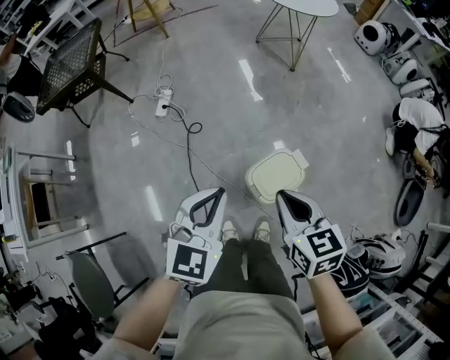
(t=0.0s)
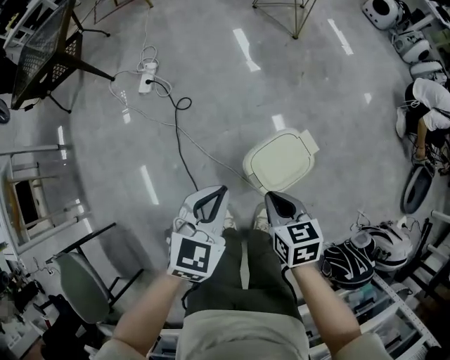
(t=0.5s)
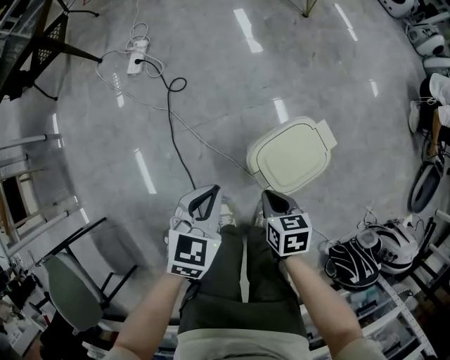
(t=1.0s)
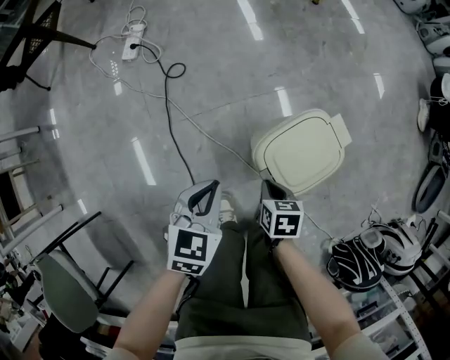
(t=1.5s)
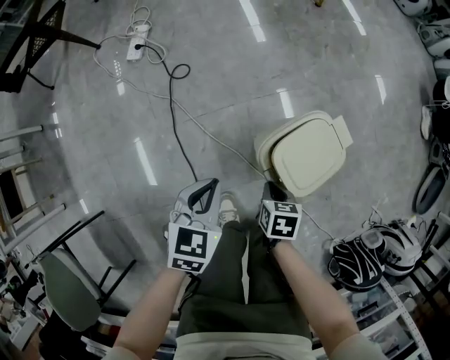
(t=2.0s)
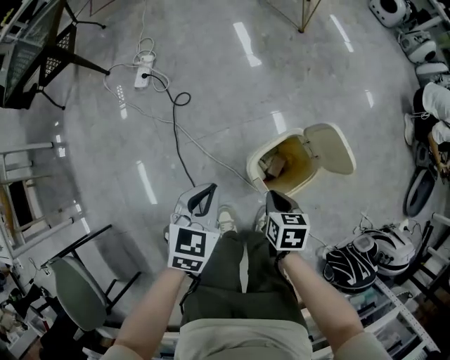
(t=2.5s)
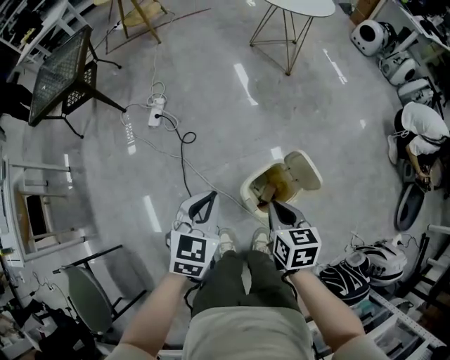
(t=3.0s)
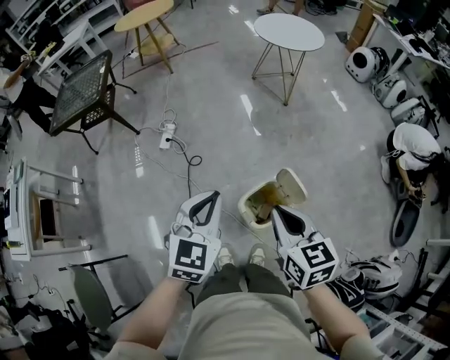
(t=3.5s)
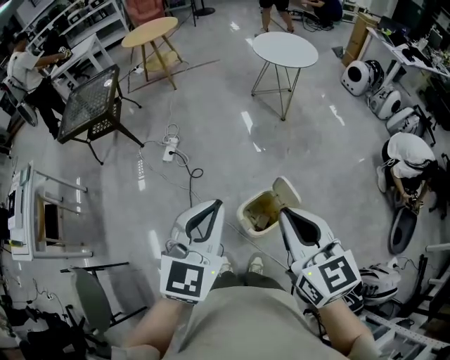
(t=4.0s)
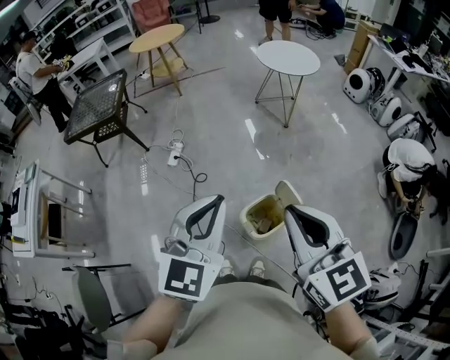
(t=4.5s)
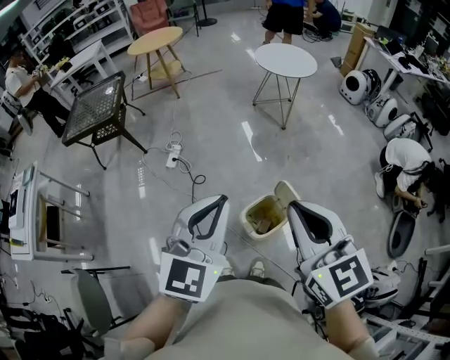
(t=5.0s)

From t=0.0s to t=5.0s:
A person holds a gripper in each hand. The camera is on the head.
From t=0.0s to t=2.5s: The grippers both shift downward by roughly 35 cm. The right gripper changes its angle by about 30 degrees.
From t=2.5s to t=5.0s: The two grippers go about 60 cm upward. The left gripper points its fingers some 30 degrees further upward; the right gripper tips its fingers upward by approximately 50 degrees.

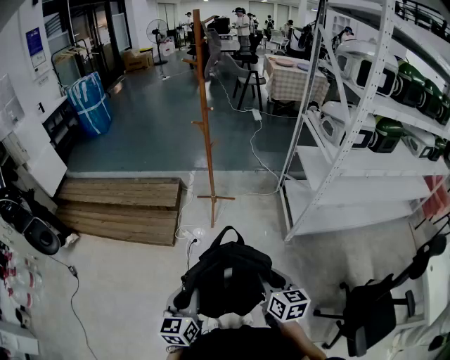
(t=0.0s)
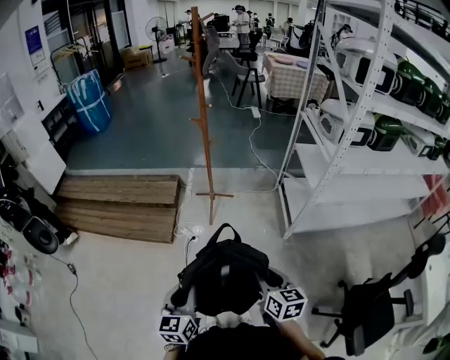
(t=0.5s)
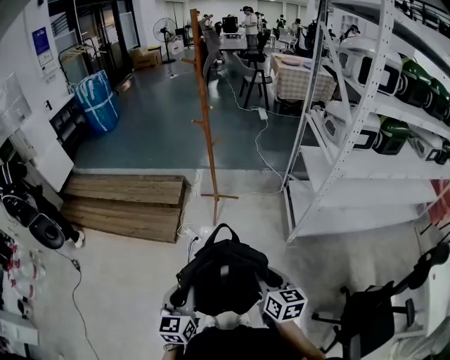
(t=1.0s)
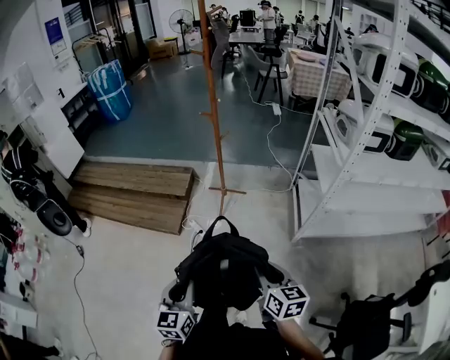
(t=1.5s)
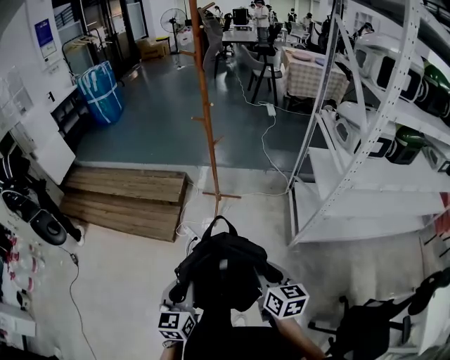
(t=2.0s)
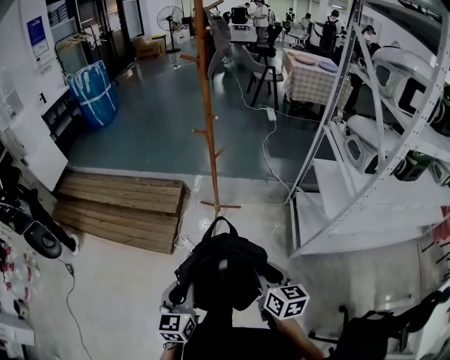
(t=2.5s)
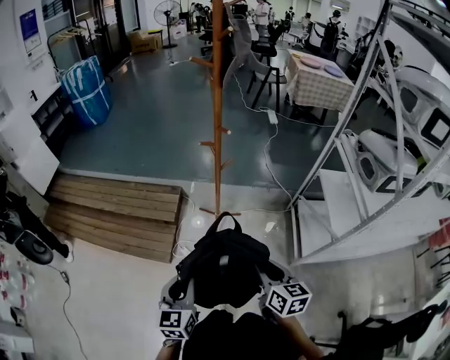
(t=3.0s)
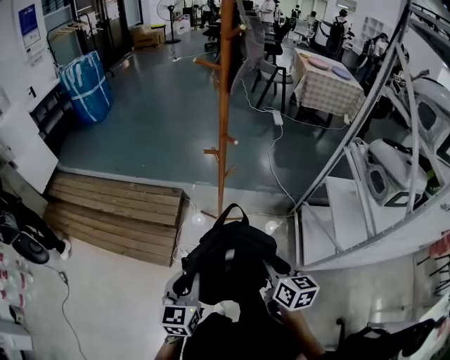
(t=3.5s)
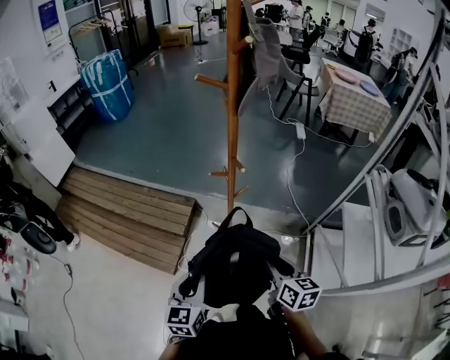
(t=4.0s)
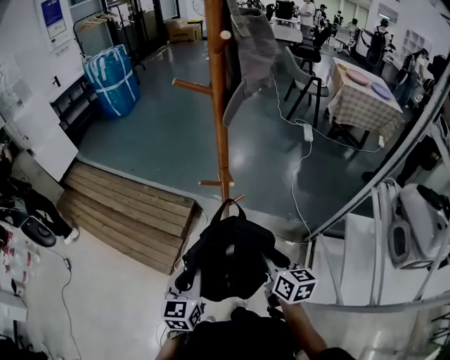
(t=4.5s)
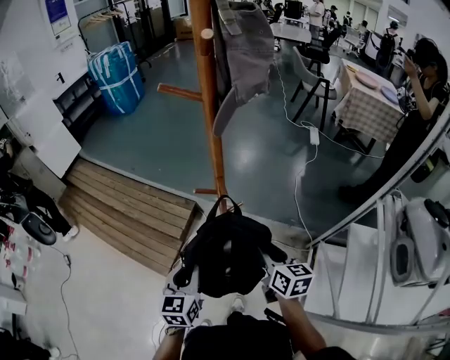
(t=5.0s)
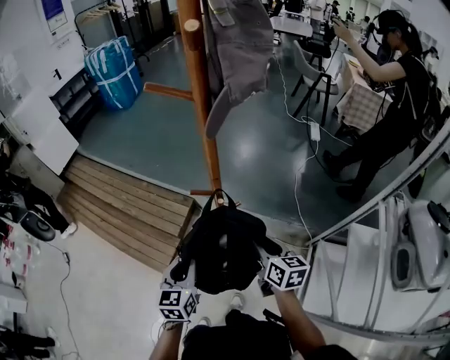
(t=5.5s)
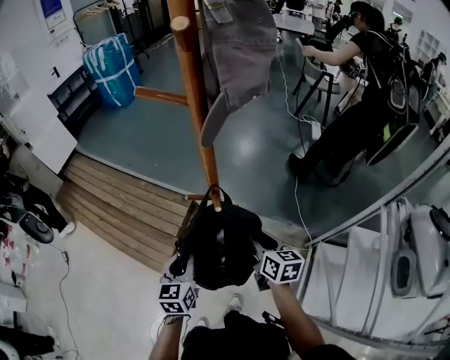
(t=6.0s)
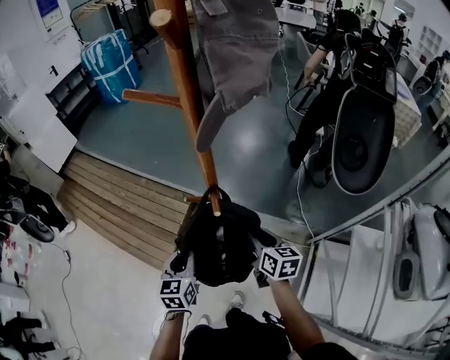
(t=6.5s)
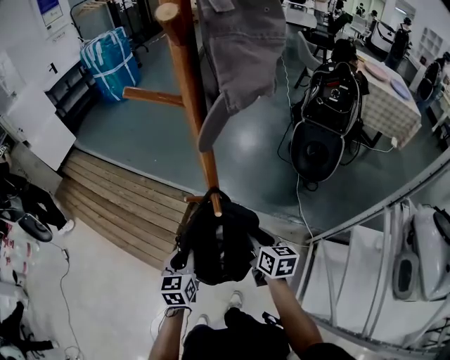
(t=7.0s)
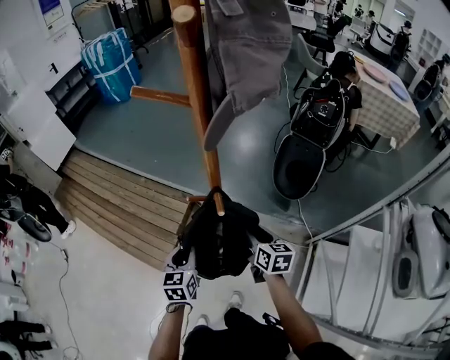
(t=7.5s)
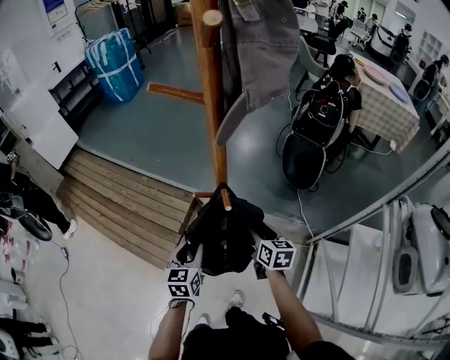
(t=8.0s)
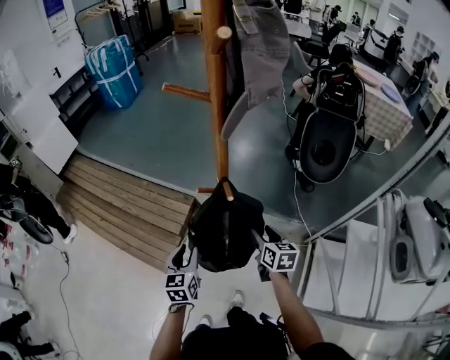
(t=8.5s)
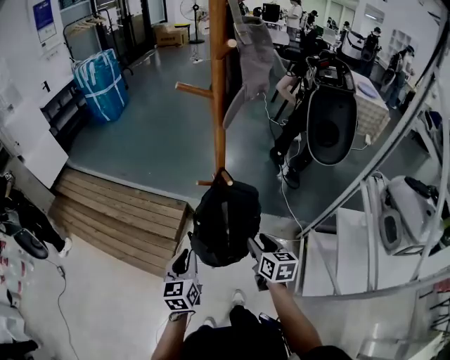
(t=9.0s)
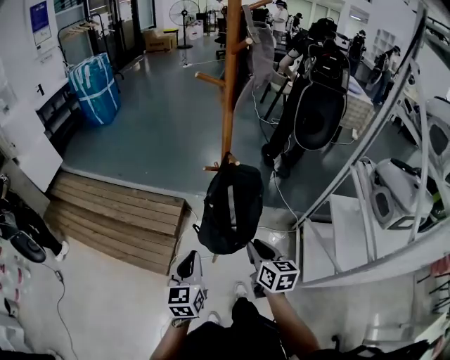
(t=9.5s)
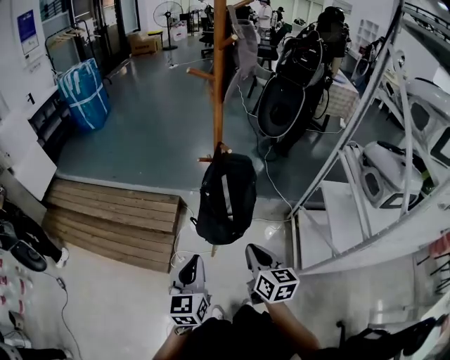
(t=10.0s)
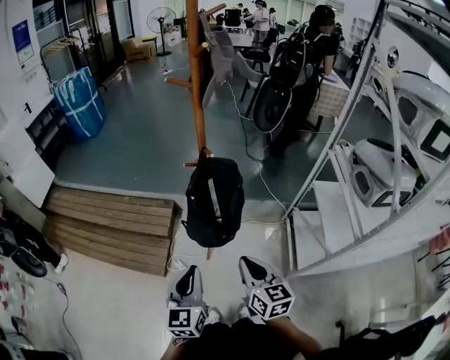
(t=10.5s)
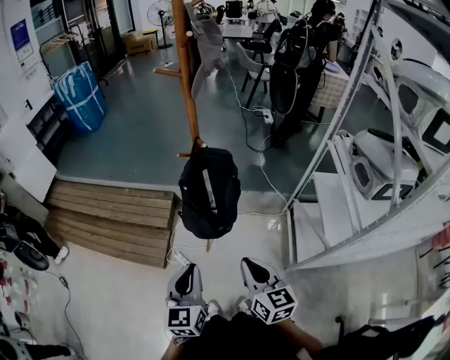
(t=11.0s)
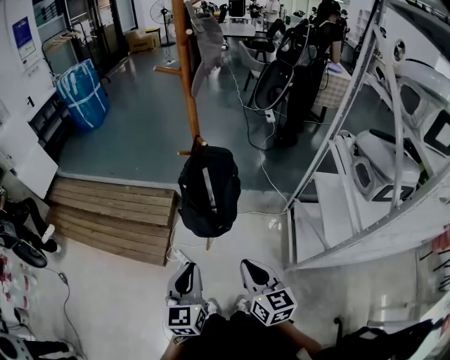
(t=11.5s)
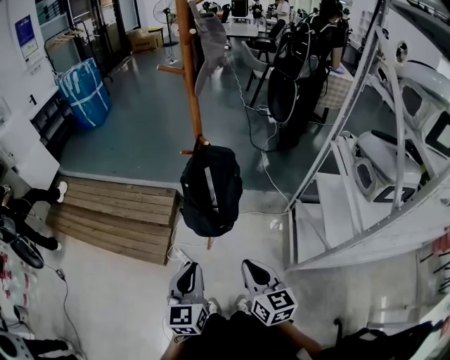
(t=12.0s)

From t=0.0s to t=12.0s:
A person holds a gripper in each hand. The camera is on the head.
From t=0.0s to t=2.0s: Both grippers travel together forward and to the right, approximately 10 cm.
From t=2.0s to t=4.0s: Both grippers are carried forward, approximately 50 cm.
From t=4.0s to t=6.0s: The right gripper shifts roughly 25 cm forward. The left gripper shifts about 20 cm forward and to the right.
From t=6.0s to t=8.0s: The right gripper moves downward, about 5 cm.
From t=8.0s to t=10.0s: Both grippers move backward and upward, approximately 35 cm. The left gripper closes its fingers. Meanwhile the right gripper closes.
From t=10.0s to t=12.0s: The left gripper moves to the right and backward, approximately 10 cm. Meanwhile the right gripper goes some 10 cm backward and to the right.

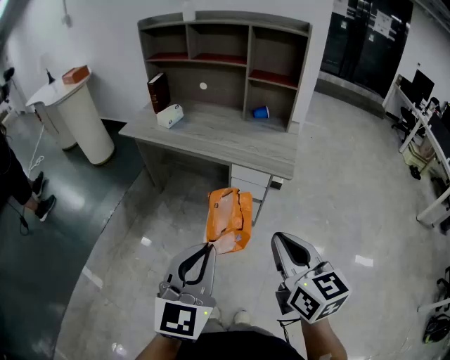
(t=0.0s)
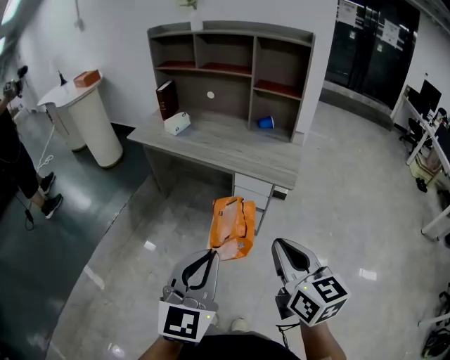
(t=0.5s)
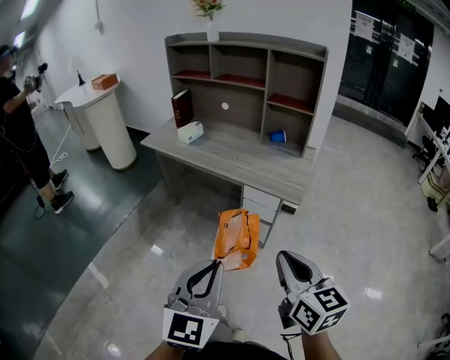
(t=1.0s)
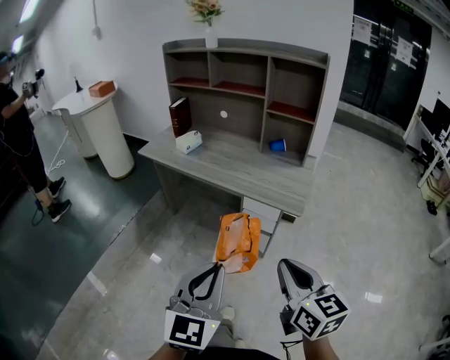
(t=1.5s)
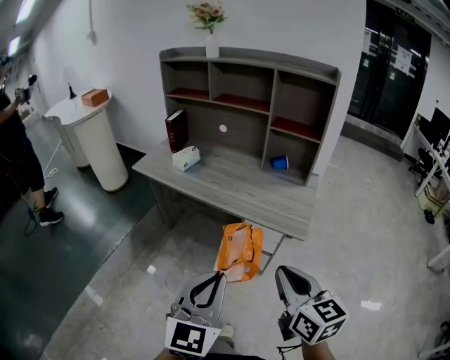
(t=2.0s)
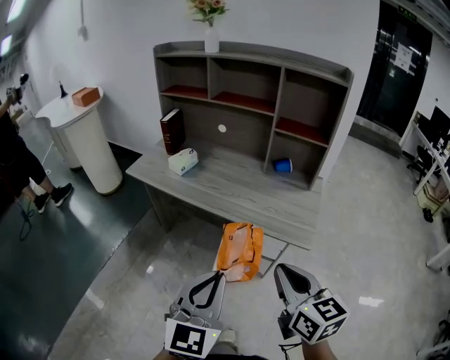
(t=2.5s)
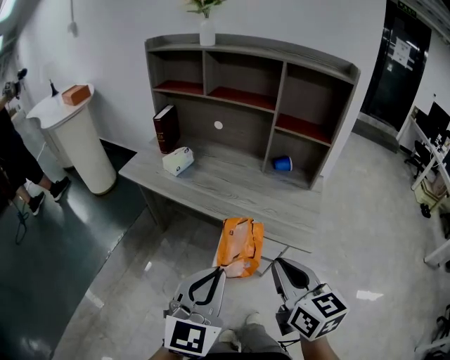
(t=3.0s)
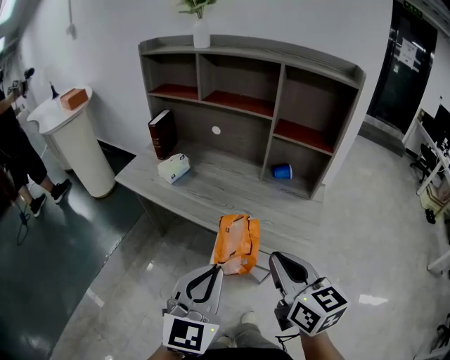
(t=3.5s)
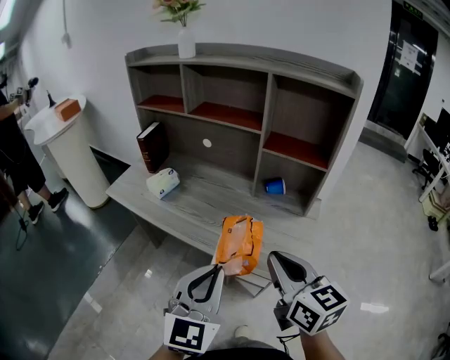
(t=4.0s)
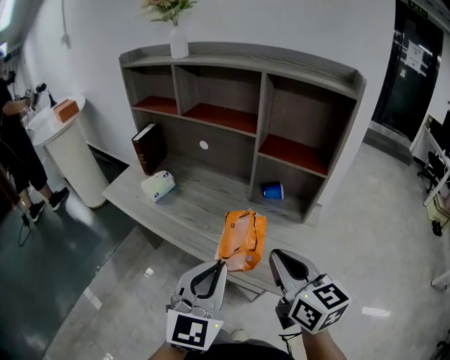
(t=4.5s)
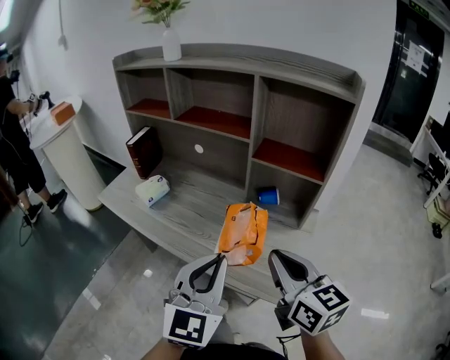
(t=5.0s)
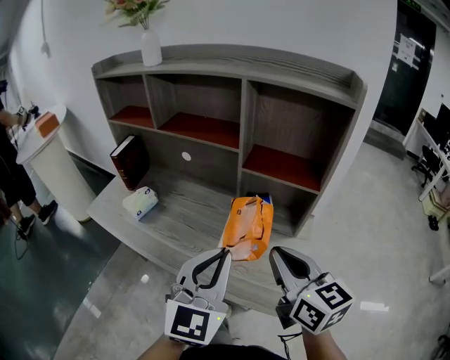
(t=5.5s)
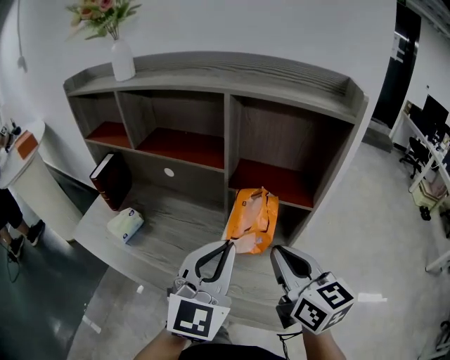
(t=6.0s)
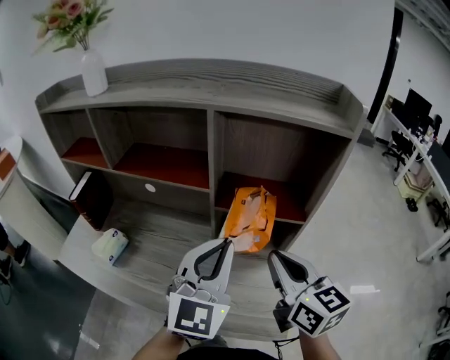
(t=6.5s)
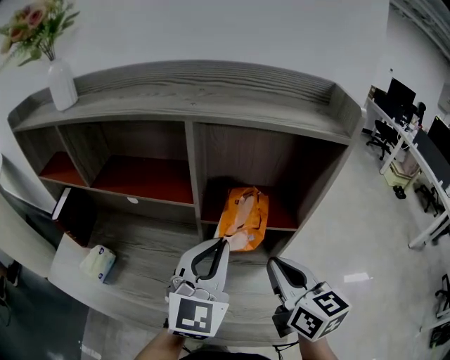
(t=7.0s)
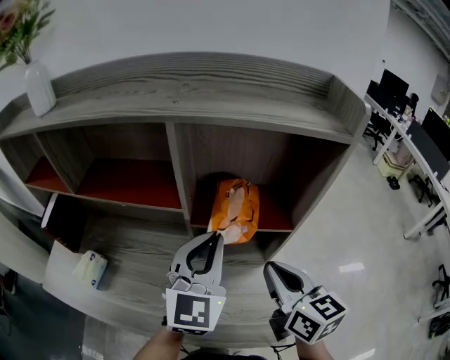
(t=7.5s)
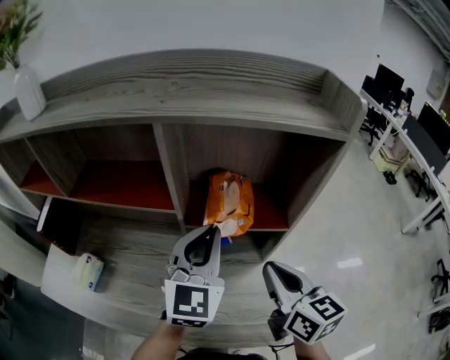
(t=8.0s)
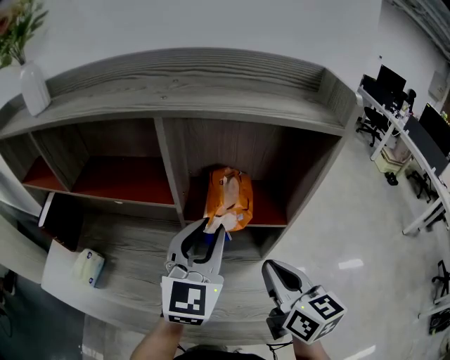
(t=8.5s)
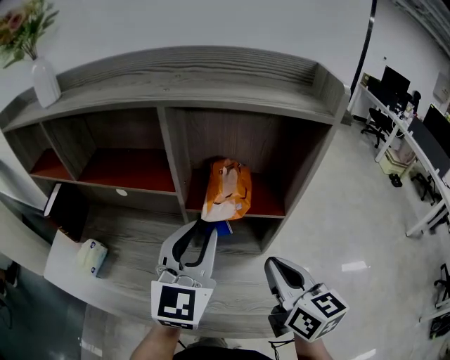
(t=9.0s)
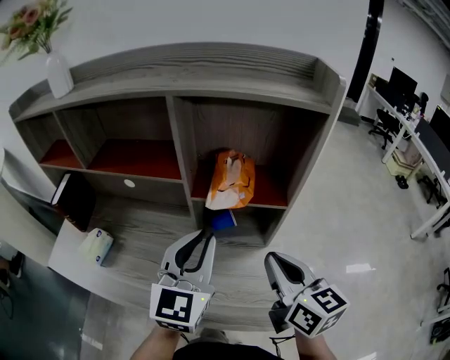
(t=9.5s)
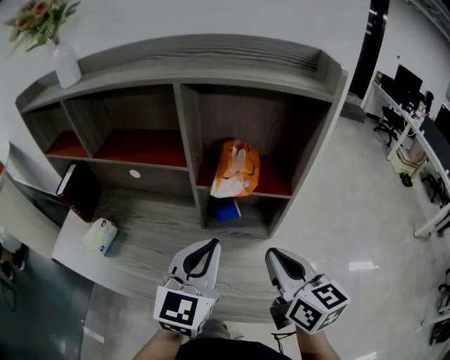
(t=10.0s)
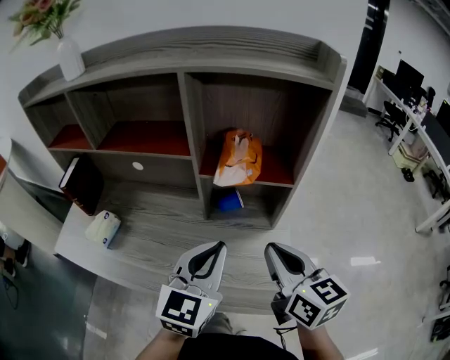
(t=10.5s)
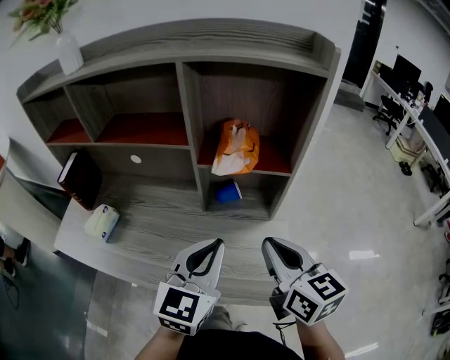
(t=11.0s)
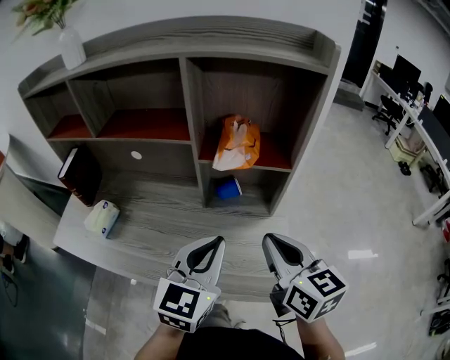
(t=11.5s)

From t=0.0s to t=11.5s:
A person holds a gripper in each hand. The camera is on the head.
From t=0.0s to t=2.0s: The grippers both shift forward by about 10 cm.
From t=2.0s to t=4.0s: The two grippers go approximately 25 cm forward.
From t=4.0s to t=6.0s: The two grippers go approximately 25 cm forward and to the right.
From t=6.0s to t=7.5s: The left gripper travels forward by approximately 15 cm; the right gripper goes about 10 cm forward.
From t=7.5s to t=9.5s: The right gripper ends up roughly 5 cm from where it was. The left gripper shifts some 5 cm backward.
From t=9.5s to t=11.5s: The left gripper goes about 10 cm backward and downward. The right gripper travels backward by roughly 5 cm.
